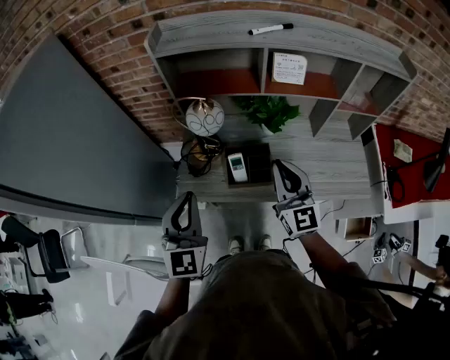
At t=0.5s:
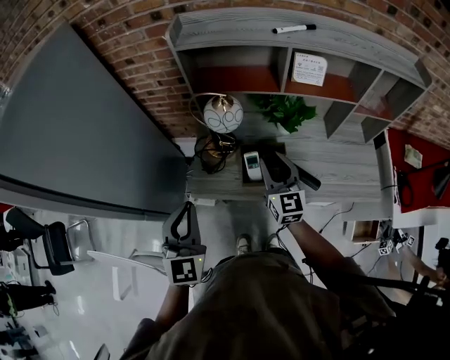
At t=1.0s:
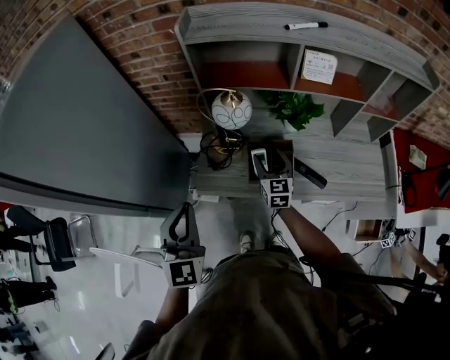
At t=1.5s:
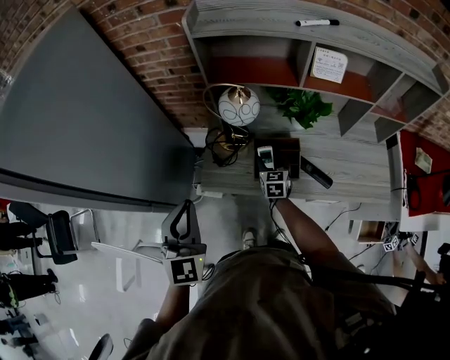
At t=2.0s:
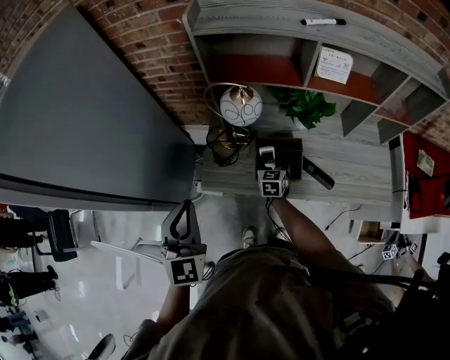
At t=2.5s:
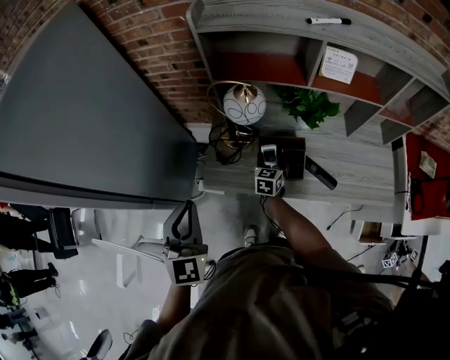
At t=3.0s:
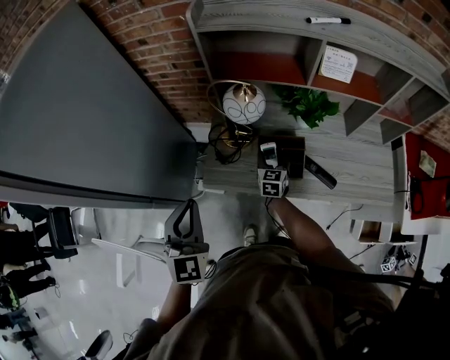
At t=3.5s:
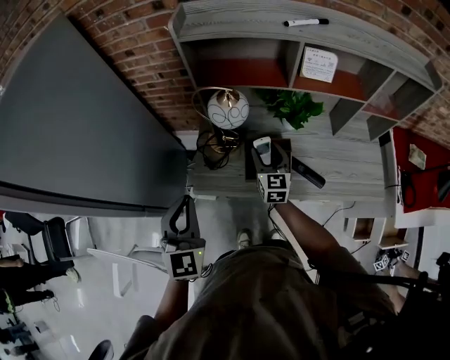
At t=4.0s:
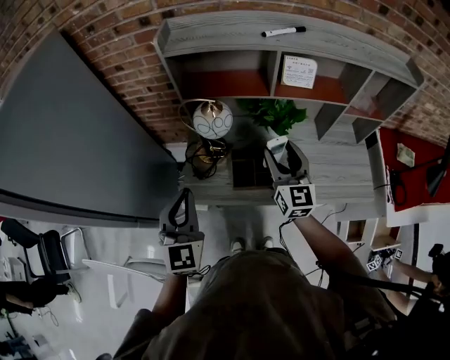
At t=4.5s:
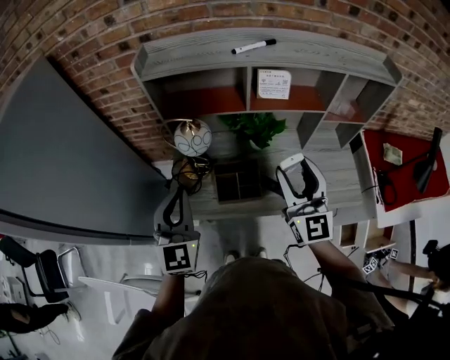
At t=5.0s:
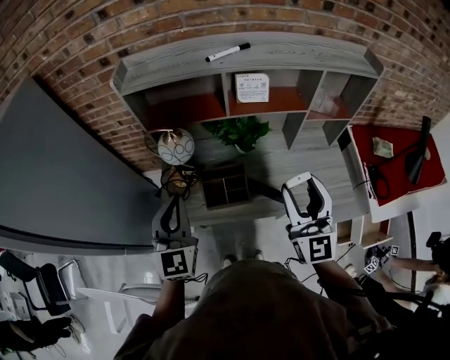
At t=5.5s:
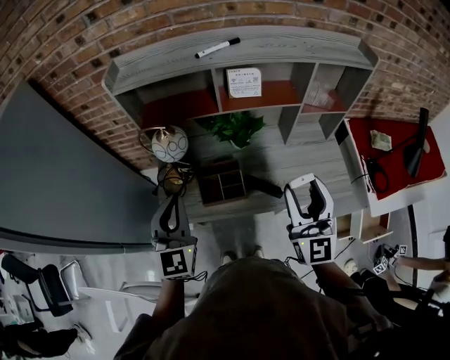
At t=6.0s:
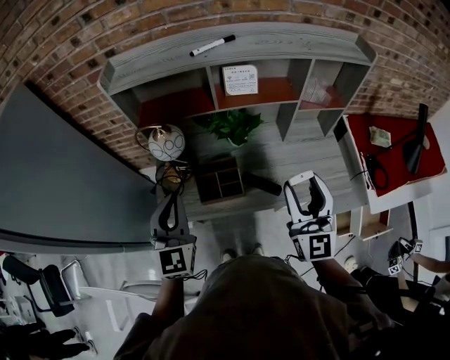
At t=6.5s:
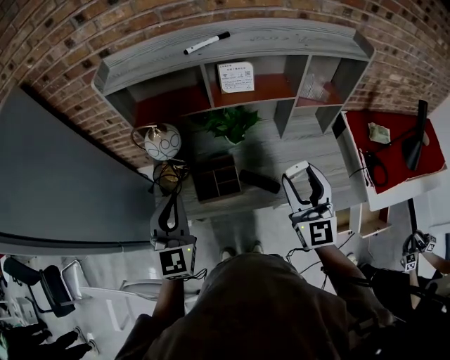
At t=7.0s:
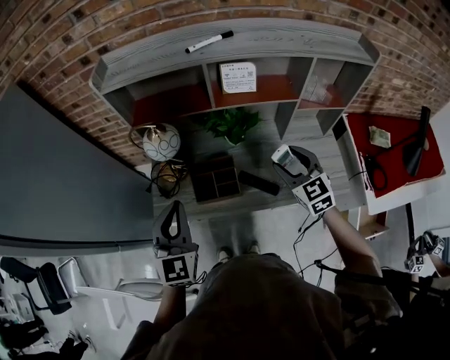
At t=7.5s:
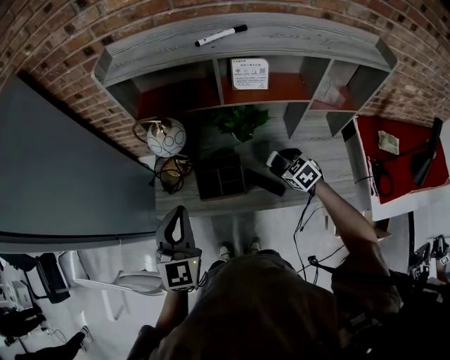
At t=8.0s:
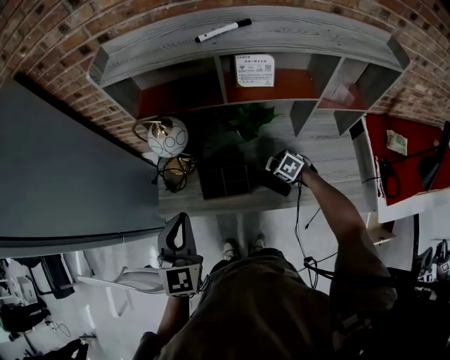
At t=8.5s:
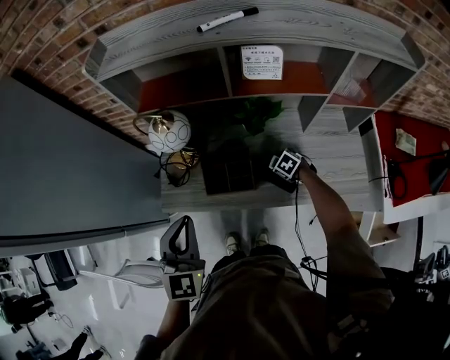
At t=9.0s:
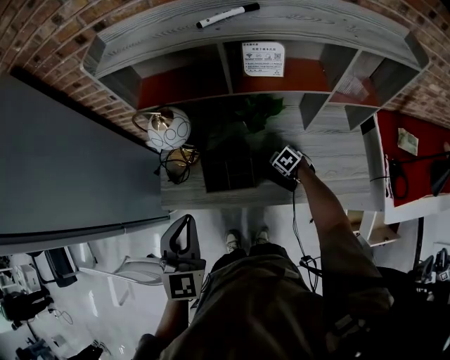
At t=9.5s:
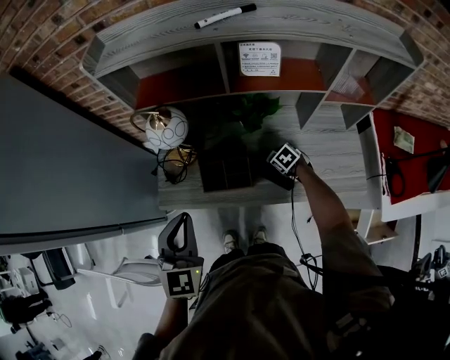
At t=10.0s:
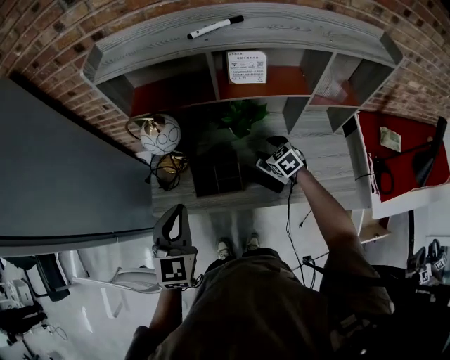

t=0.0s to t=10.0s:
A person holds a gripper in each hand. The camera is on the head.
t=0.0s to t=2.0s: The left gripper is displaced to the left by approximately 10 cm. The right gripper goes approximately 35 cm downward and forward, tips its fingers downward by about 40 degrees, and opens its fingers.
t=2.0s to t=4.0s: The left gripper goes roughly 5 cm to the right; the right gripper moves upward, some 25 cm, and angles its fingers upward, by approximately 30 degrees.
t=4.0s to t=6.0s: The right gripper moves to the right, backward and upward, roughly 25 cm. The left gripper moves to the right, roughly 10 cm.
t=6.0s to t=8.0s: The right gripper goes roughly 40 cm downward, and points its fingers some 80 degrees further downward.
t=8.0s to t=10.0s: The right gripper shifts roughly 5 cm upward, and swivels approximately 30 degrees.

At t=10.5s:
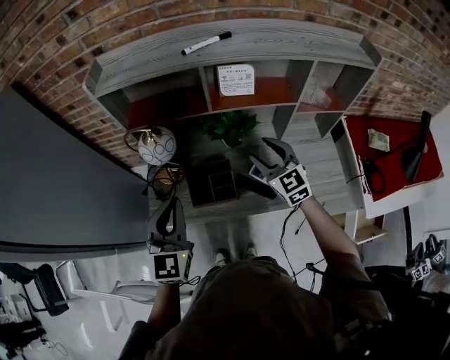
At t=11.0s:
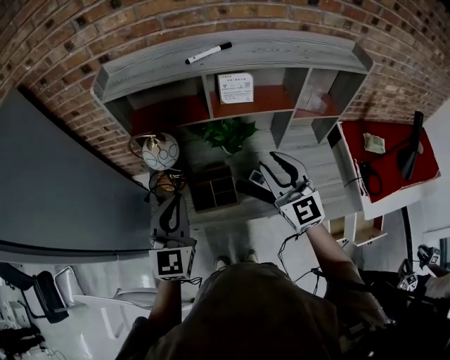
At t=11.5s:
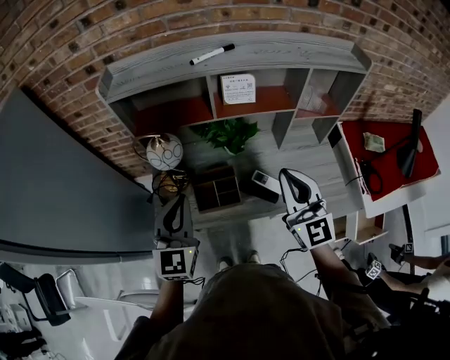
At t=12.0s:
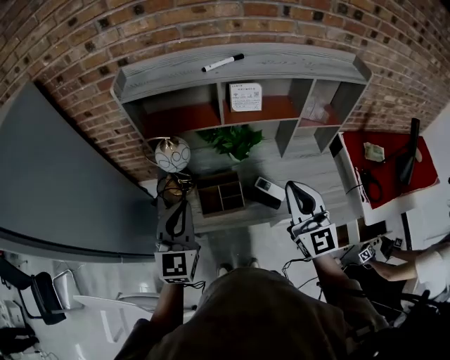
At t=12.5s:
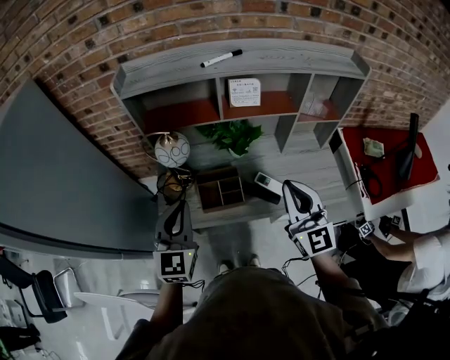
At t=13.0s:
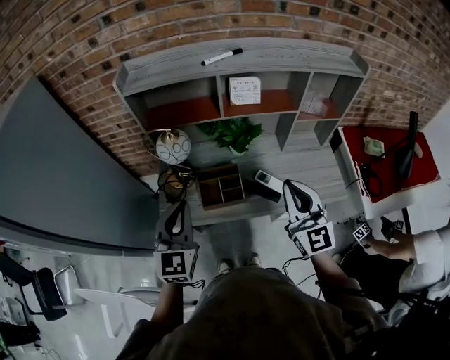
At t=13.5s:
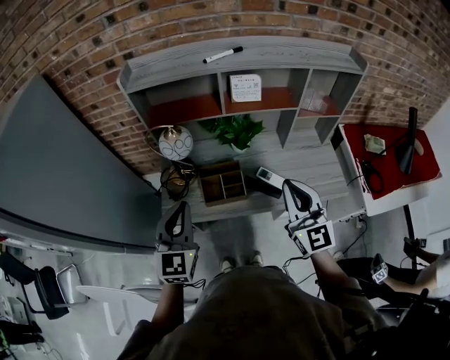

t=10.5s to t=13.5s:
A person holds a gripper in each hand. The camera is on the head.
t=10.5s to t=12.0s: The right gripper travels backward and upward by about 20 cm, rotates some 20 degrees, and closes up.
t=12.0s to t=13.5s: The left gripper heads backward, covering some 5 cm.

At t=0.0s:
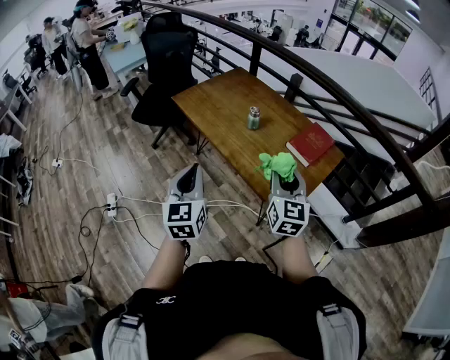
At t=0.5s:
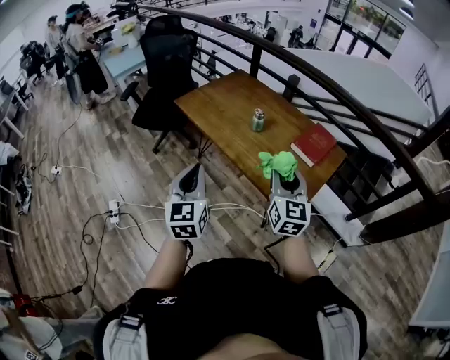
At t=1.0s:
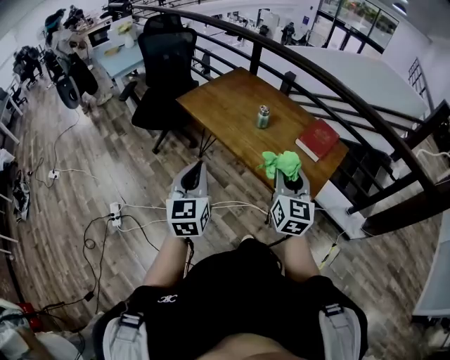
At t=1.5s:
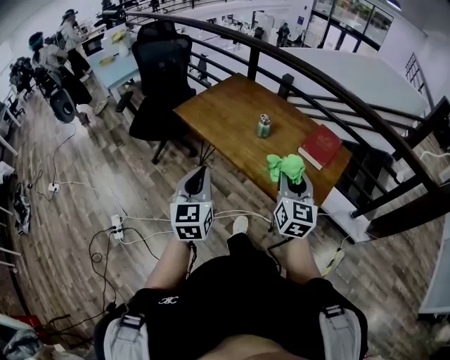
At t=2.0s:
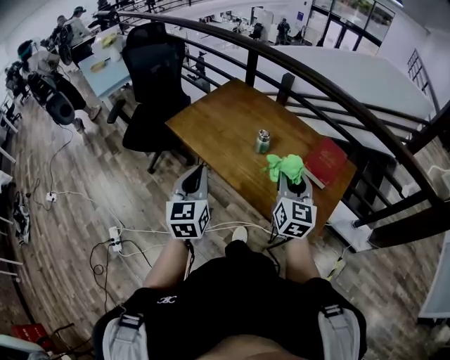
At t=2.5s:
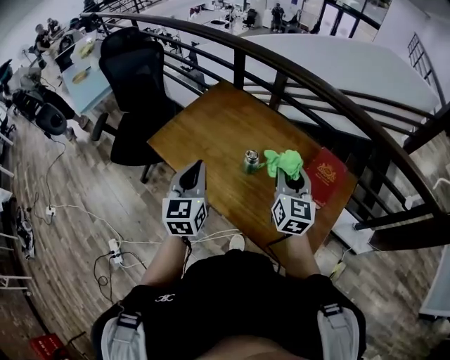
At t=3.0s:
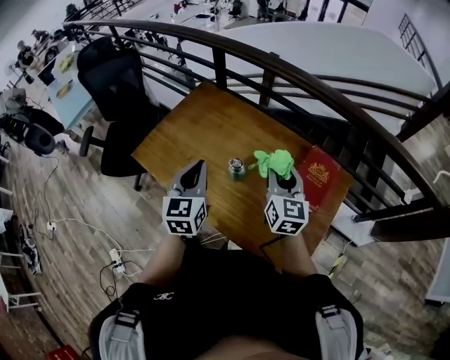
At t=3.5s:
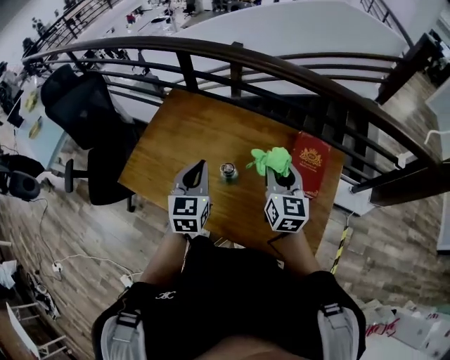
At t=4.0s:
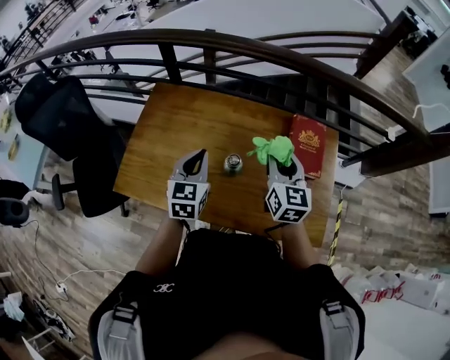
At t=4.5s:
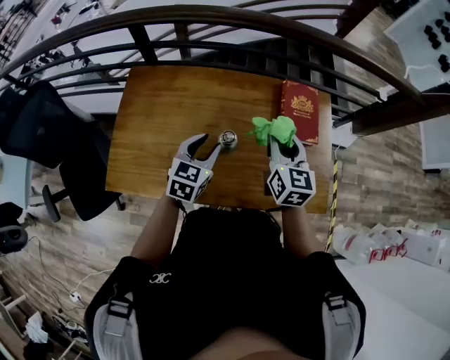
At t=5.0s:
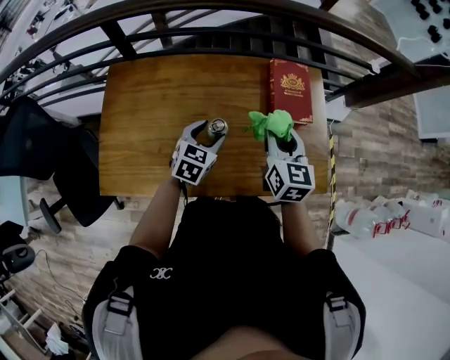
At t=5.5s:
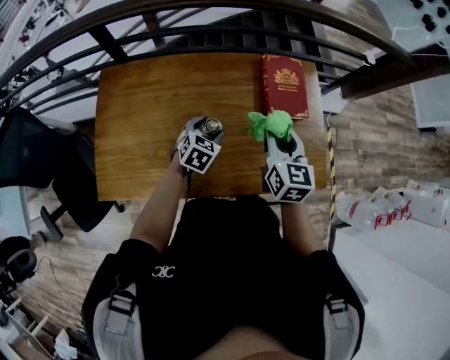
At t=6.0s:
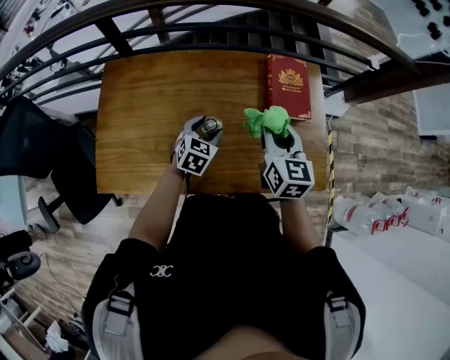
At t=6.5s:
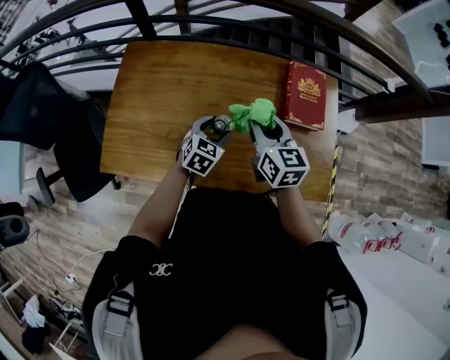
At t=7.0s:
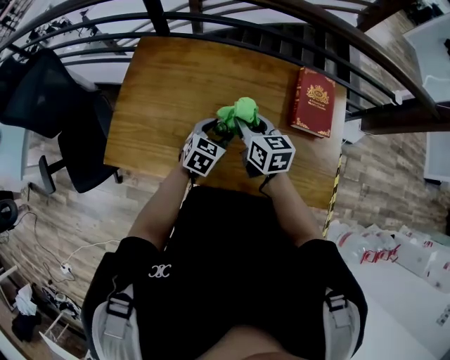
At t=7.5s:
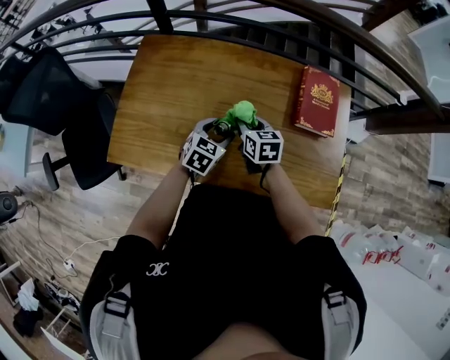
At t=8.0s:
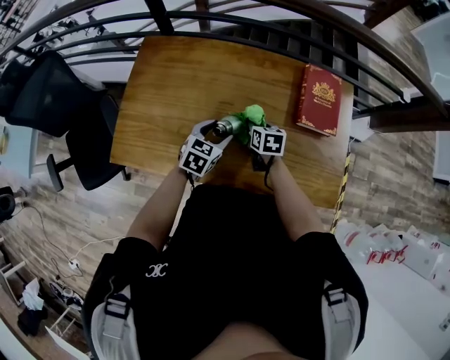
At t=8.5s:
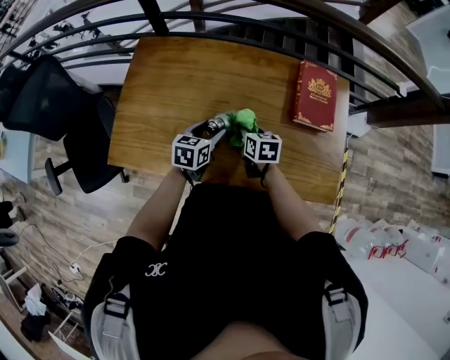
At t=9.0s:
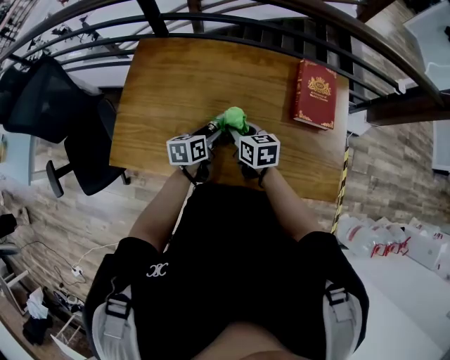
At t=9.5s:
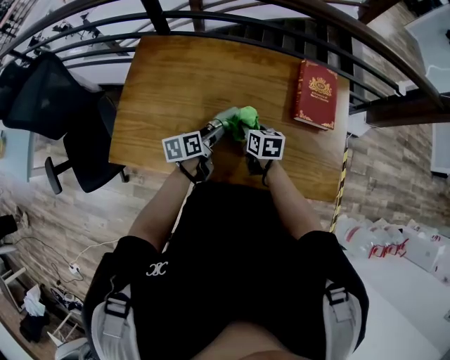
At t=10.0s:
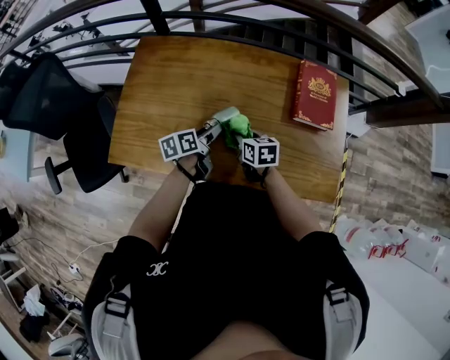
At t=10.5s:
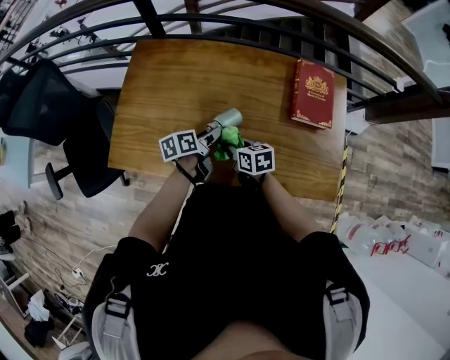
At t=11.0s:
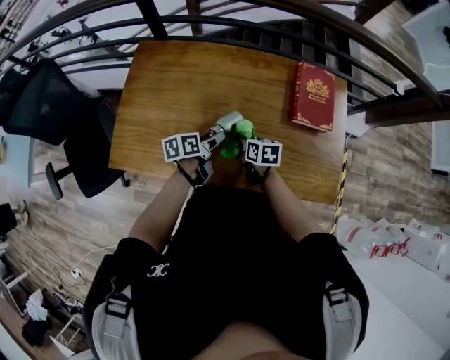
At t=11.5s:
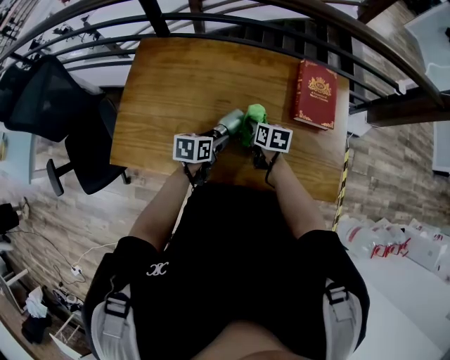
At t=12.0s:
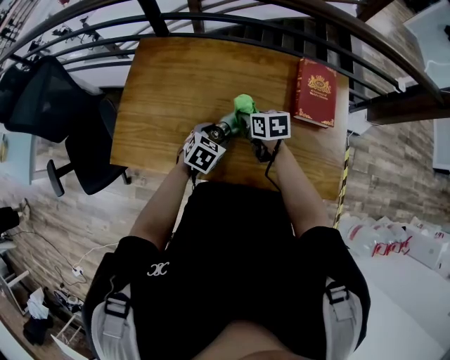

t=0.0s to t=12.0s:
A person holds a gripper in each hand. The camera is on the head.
t=0.0s to t=2.0s: Both grippers travel together forward and to the left, some 20 cm.
t=2.0s to t=4.0s: The left gripper ends up some 35 cm from where it was, and rotates approximately 40 degrees; the right gripper shifts by roughly 25 cm, and turns by approximately 20 degrees.
t=4.0s to t=6.0s: The right gripper shifts by approximately 5 cm; the left gripper moves downward, roughly 15 cm, rotates roughly 40 degrees, and opens.
t=6.0s to t=8.0s: The right gripper moves downward, roughly 25 cm, and changes its angle by roughly 30 degrees; the left gripper shifts by roughly 5 cm.
t=8.0s to t=10.0s: The right gripper shifts some 5 cm backward, while the left gripper twists about 60 degrees counterclockwise, seen from behind.
t=10.0s to t=12.0s: The right gripper moves forward, approximately 5 cm, while the left gripper twists some 60 degrees clockwise, seen from behind.

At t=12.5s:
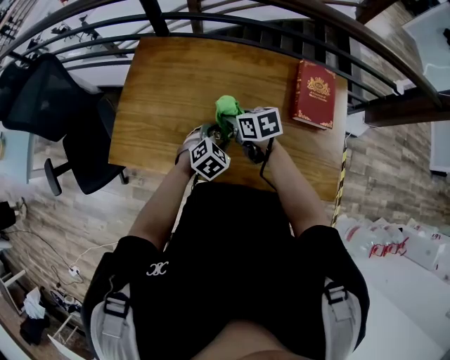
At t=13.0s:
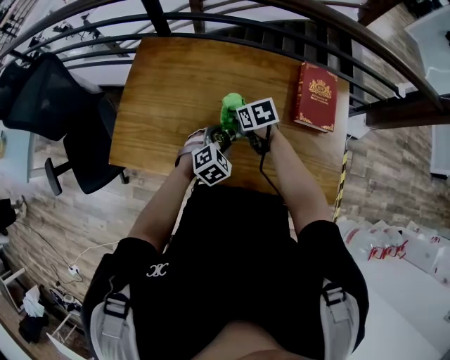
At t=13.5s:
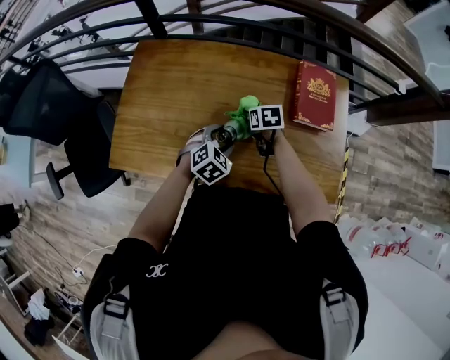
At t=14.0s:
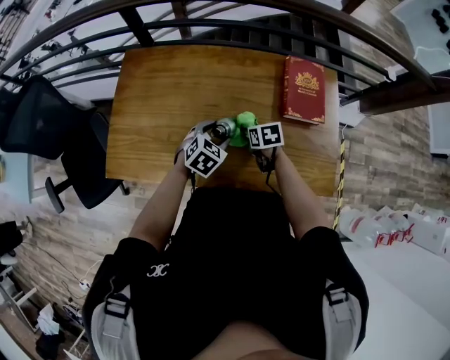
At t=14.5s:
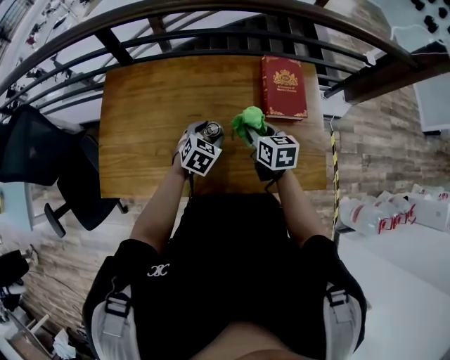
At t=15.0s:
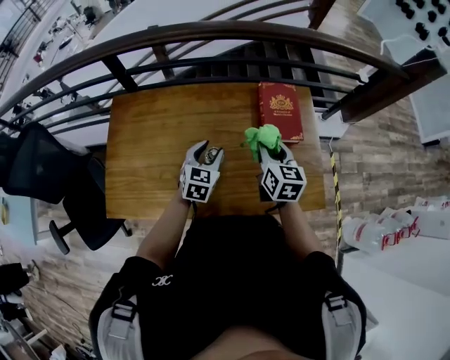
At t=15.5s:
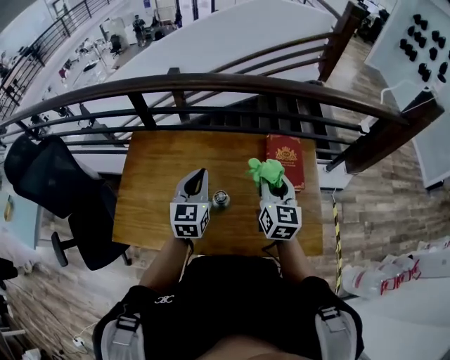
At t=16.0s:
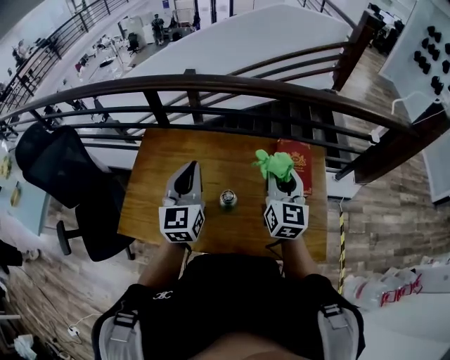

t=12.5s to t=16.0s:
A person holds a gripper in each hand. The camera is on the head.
t=12.5s to t=14.5s: The right gripper is displaced to the right by roughly 15 cm, and rotates about 30 degrees; the left gripper moves to the right, roughly 5 cm.
t=14.5s to t=16.0s: Both grippers move upward, about 25 cm. The right gripper tips its fingers upward by some 30 degrees, while the left gripper tilts its fingers roughly 50 degrees upward, and closes.
